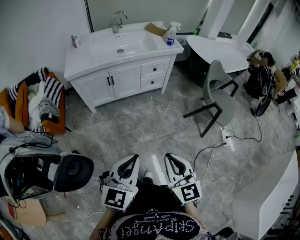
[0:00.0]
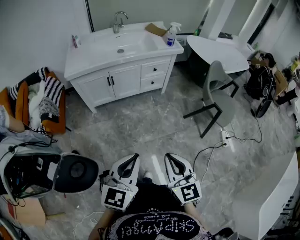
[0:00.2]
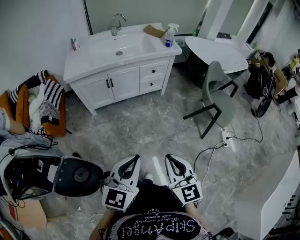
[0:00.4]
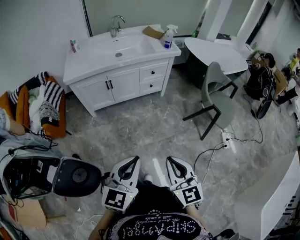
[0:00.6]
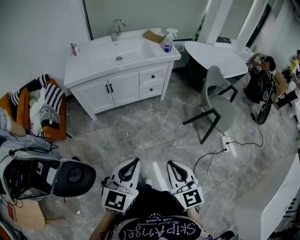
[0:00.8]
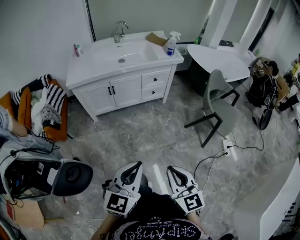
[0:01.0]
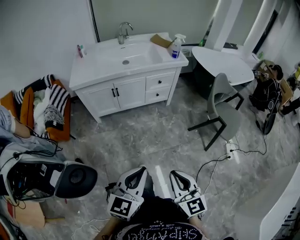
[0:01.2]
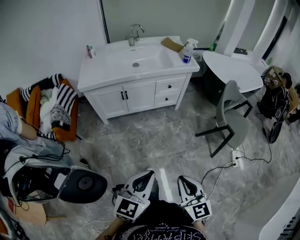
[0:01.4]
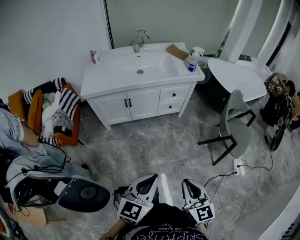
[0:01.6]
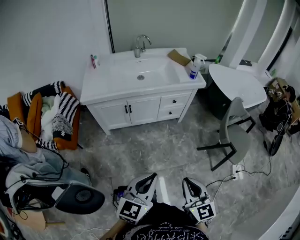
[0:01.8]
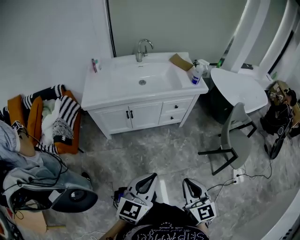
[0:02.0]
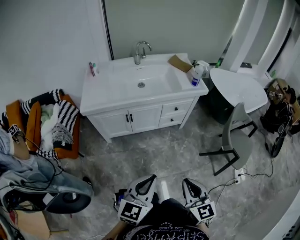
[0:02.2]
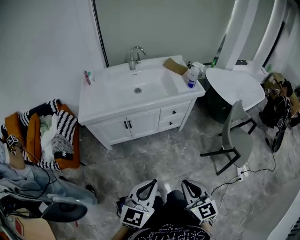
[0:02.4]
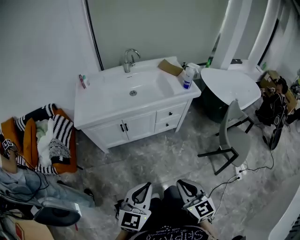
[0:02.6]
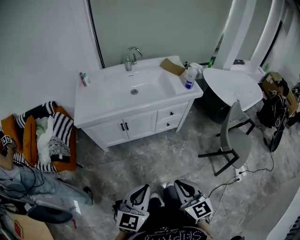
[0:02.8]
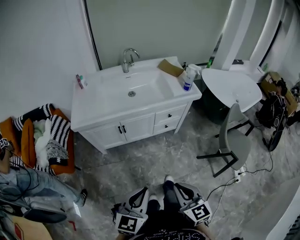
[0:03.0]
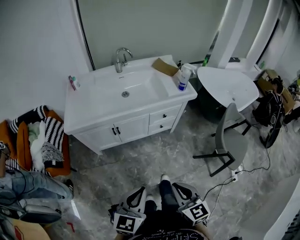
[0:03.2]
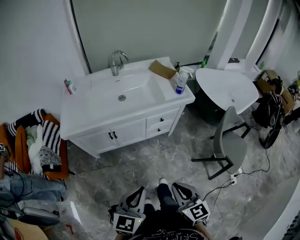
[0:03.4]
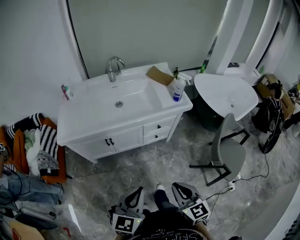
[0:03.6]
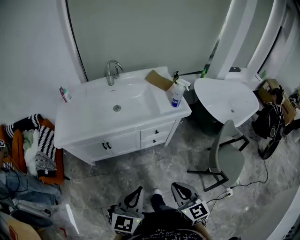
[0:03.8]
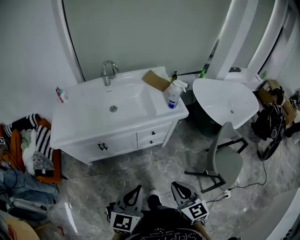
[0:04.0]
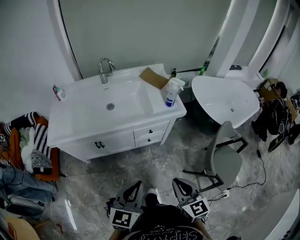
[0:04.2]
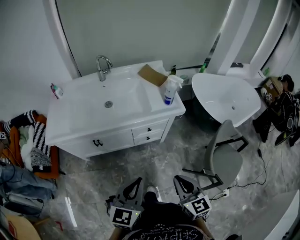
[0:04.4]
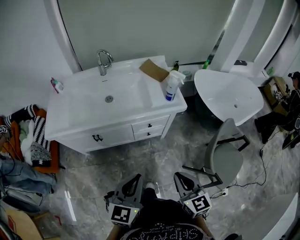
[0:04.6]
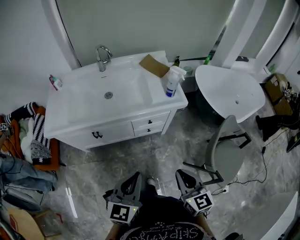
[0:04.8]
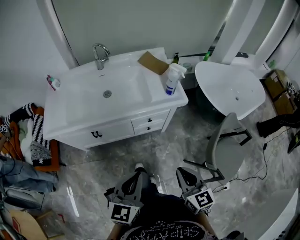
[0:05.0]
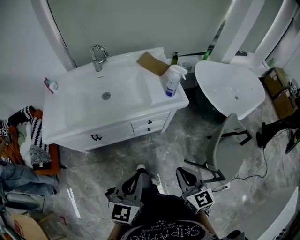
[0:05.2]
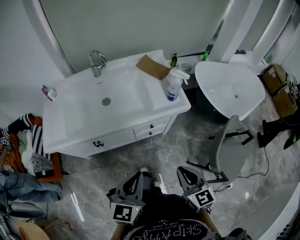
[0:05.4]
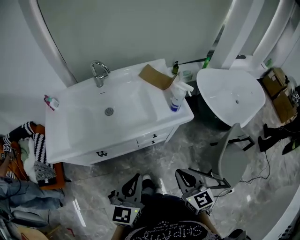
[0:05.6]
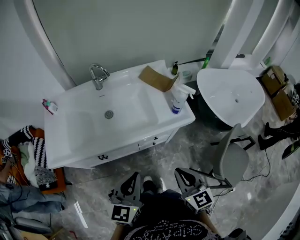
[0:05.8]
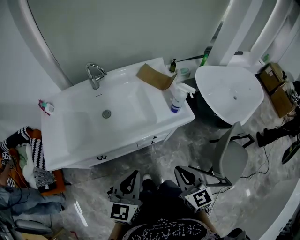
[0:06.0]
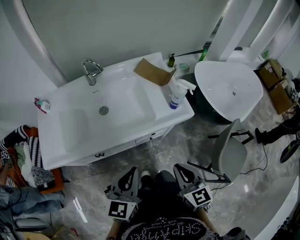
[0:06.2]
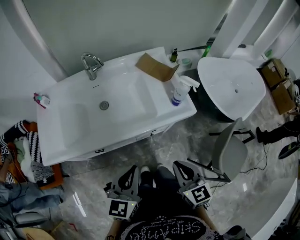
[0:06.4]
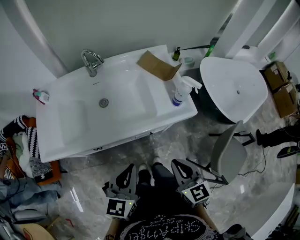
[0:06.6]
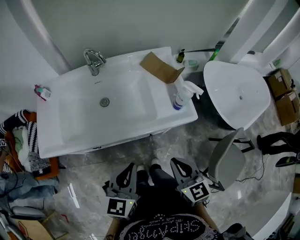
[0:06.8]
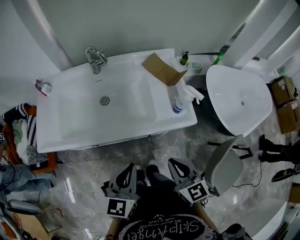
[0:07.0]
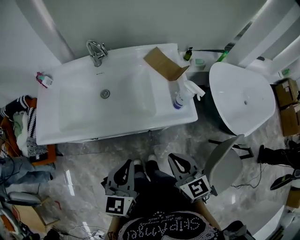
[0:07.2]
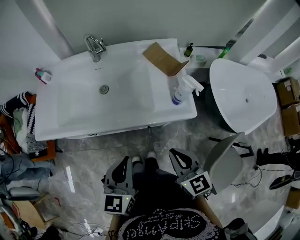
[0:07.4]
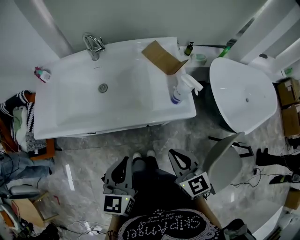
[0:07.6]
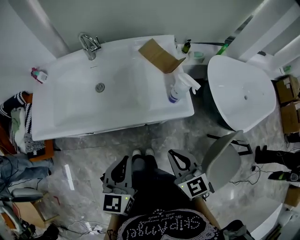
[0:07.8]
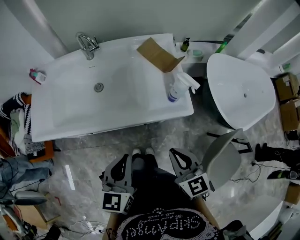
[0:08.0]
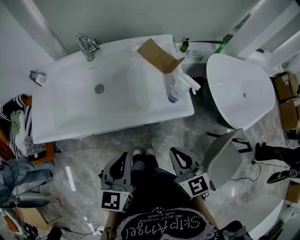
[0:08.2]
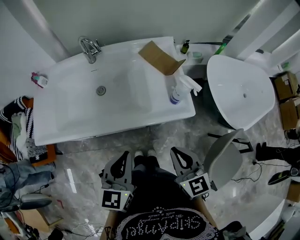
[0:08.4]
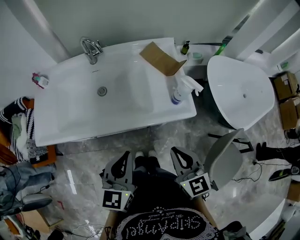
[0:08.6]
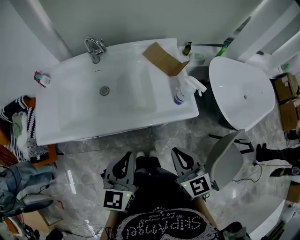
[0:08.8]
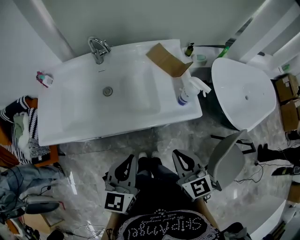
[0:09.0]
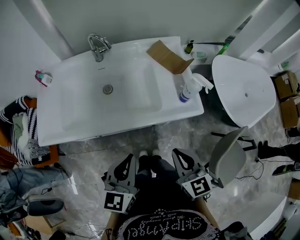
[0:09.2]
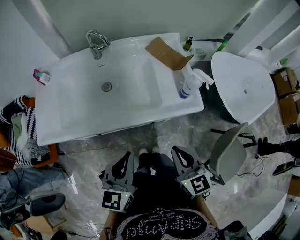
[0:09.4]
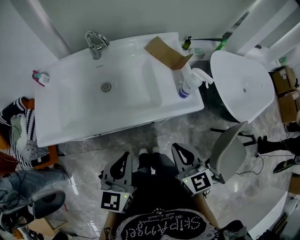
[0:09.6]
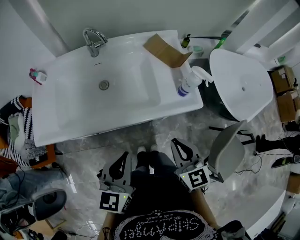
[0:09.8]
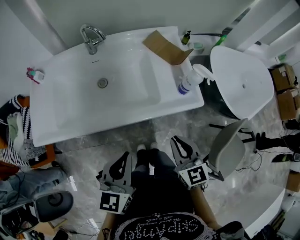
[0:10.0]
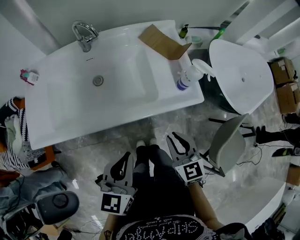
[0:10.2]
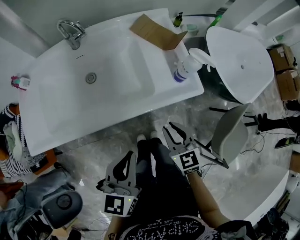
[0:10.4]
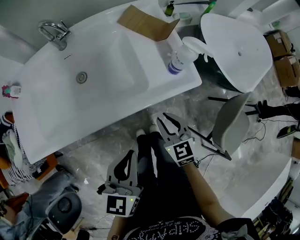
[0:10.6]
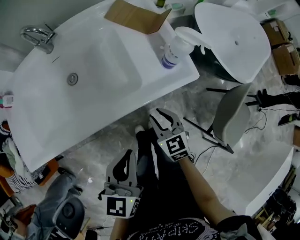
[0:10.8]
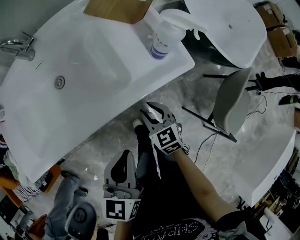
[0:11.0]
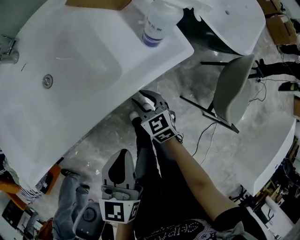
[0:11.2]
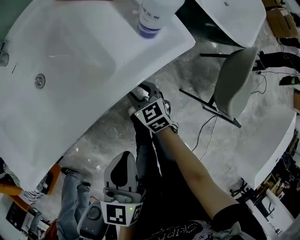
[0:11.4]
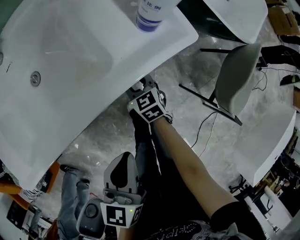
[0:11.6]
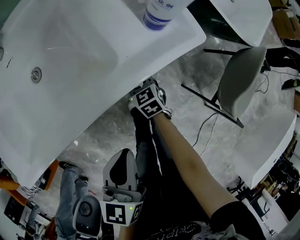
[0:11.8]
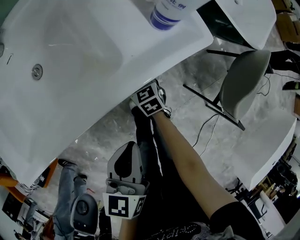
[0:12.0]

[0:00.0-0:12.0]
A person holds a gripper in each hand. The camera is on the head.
0:00.0 to 0:01.6: Both grippers move forward, about 10 cm.
0:01.6 to 0:03.0: The right gripper is displaced forward by roughly 15 cm; the left gripper shifts roughly 15 cm forward and to the left.
0:03.0 to 0:04.4: The left gripper goes some 25 cm forward and to the right. Meanwhile the right gripper moves to the right and forward, approximately 25 cm.
0:04.4 to 0:06.0: The two grippers go roughly 15 cm forward.
0:06.0 to 0:07.6: The left gripper goes roughly 5 cm to the right, while the right gripper goes roughly 10 cm forward and to the right.
0:07.6 to 0:09.0: The grippers stay close to where they were, moving slightly.
0:09.0 to 0:10.4: The right gripper shifts roughly 15 cm downward.
0:10.4 to 0:12.0: The right gripper moves downward, approximately 30 cm, and changes its angle by roughly 20 degrees; the left gripper heads downward, covering about 15 cm.

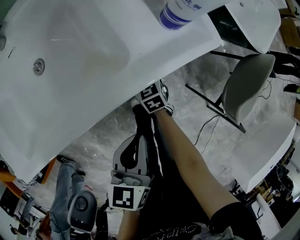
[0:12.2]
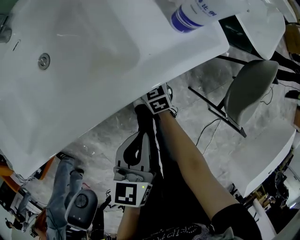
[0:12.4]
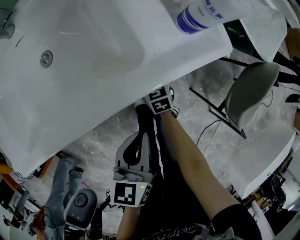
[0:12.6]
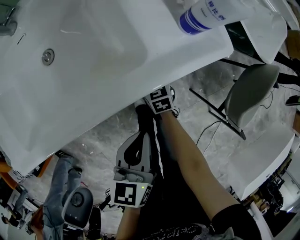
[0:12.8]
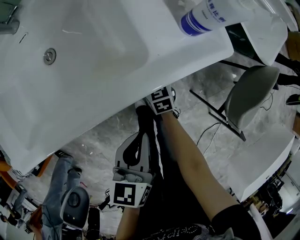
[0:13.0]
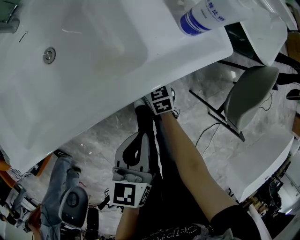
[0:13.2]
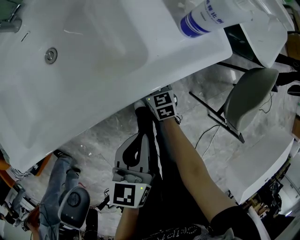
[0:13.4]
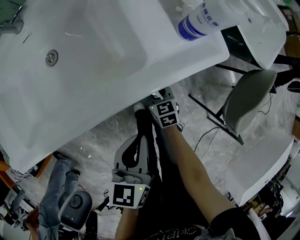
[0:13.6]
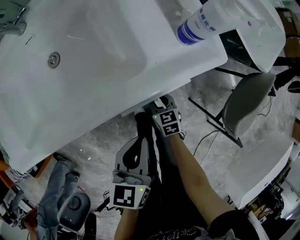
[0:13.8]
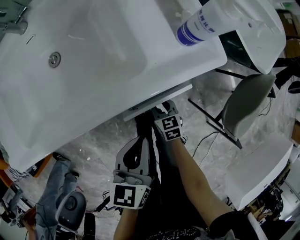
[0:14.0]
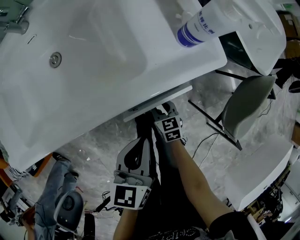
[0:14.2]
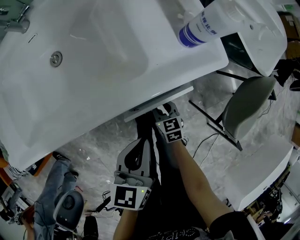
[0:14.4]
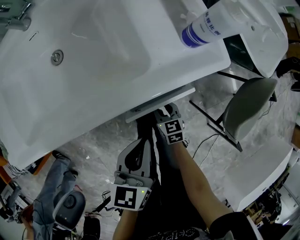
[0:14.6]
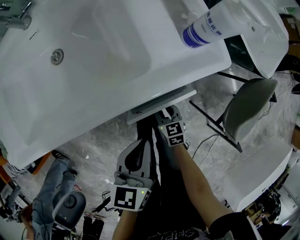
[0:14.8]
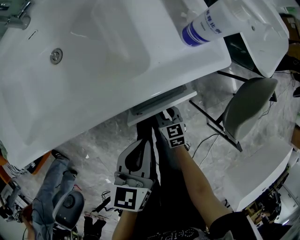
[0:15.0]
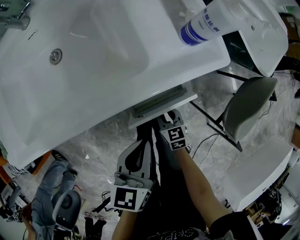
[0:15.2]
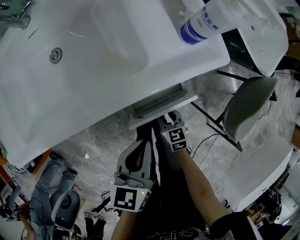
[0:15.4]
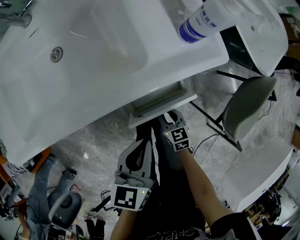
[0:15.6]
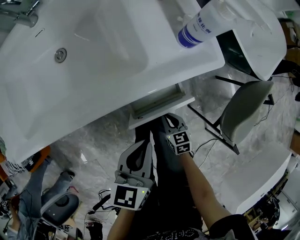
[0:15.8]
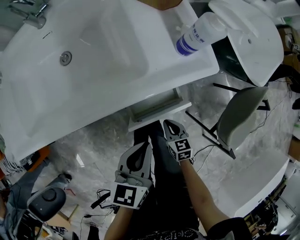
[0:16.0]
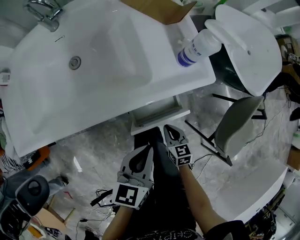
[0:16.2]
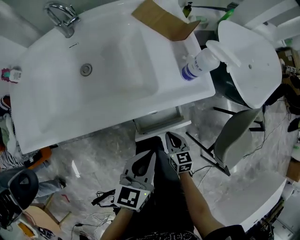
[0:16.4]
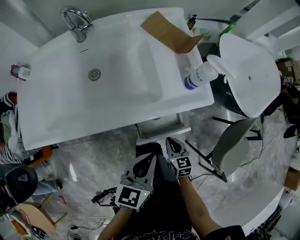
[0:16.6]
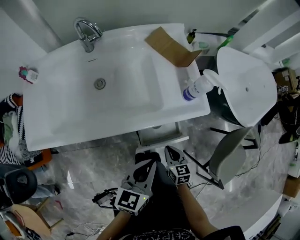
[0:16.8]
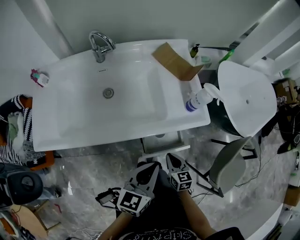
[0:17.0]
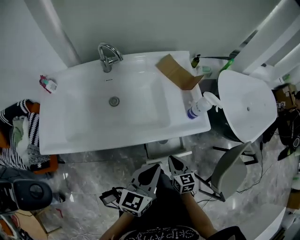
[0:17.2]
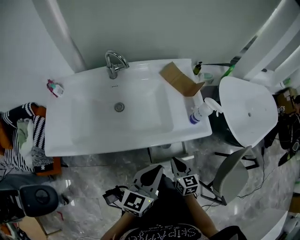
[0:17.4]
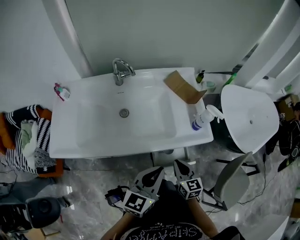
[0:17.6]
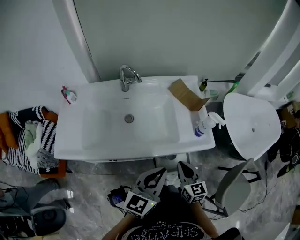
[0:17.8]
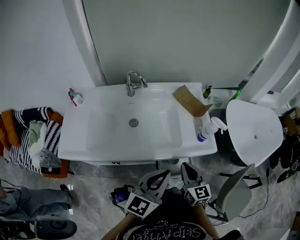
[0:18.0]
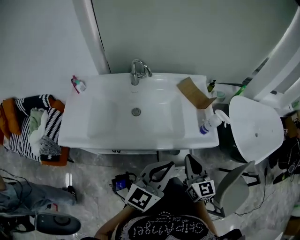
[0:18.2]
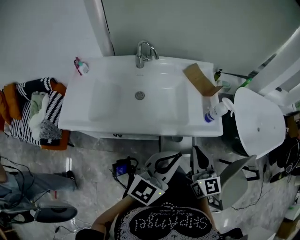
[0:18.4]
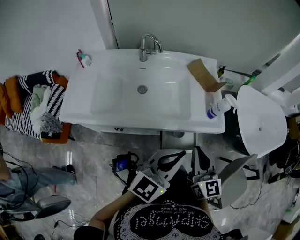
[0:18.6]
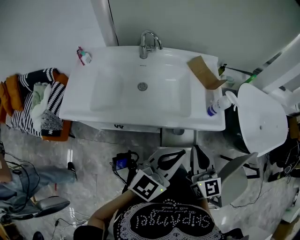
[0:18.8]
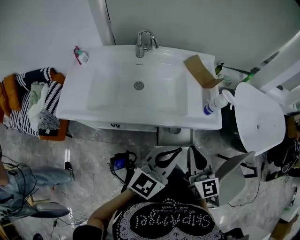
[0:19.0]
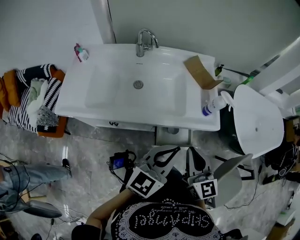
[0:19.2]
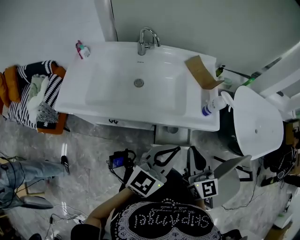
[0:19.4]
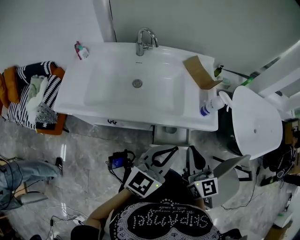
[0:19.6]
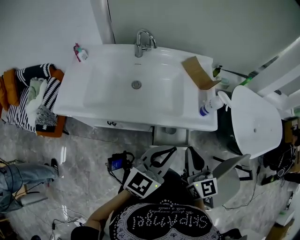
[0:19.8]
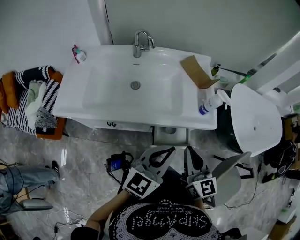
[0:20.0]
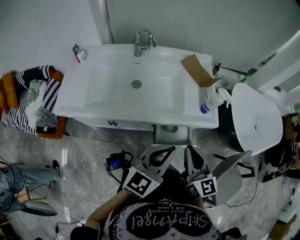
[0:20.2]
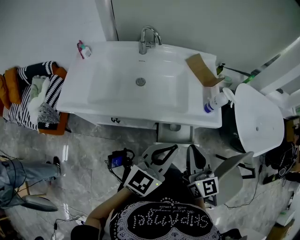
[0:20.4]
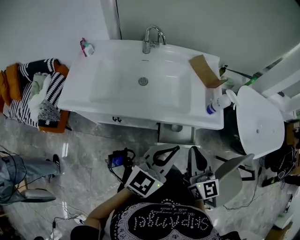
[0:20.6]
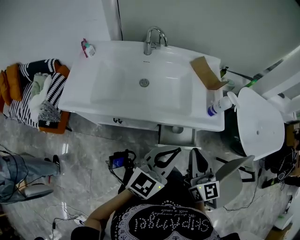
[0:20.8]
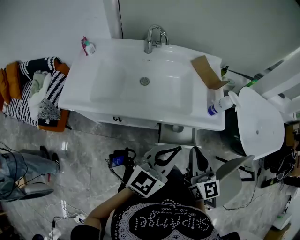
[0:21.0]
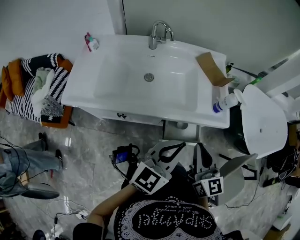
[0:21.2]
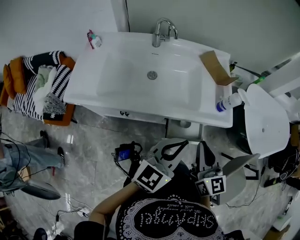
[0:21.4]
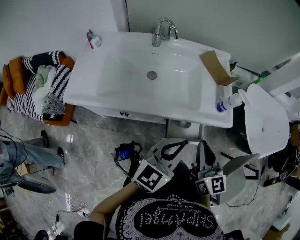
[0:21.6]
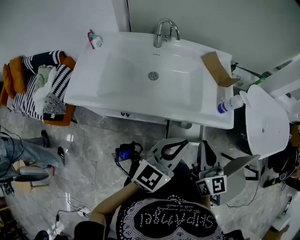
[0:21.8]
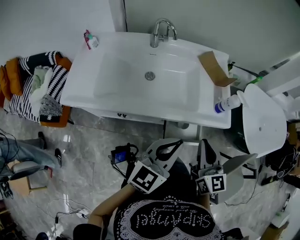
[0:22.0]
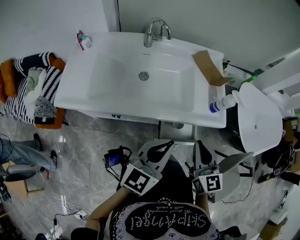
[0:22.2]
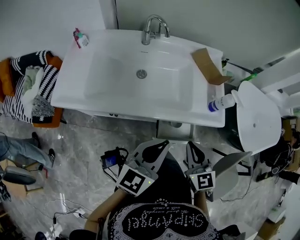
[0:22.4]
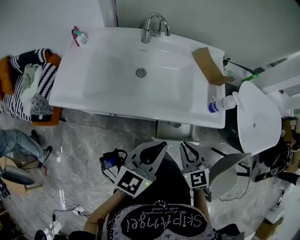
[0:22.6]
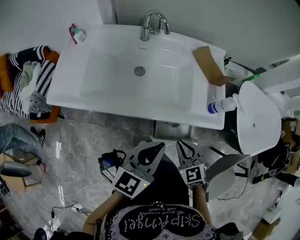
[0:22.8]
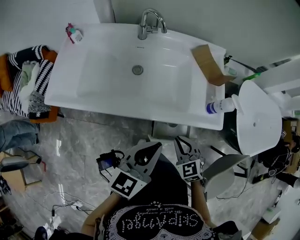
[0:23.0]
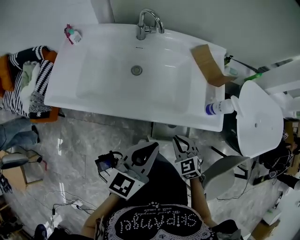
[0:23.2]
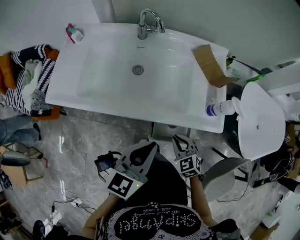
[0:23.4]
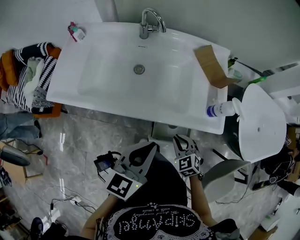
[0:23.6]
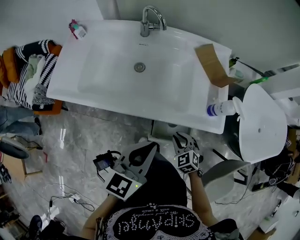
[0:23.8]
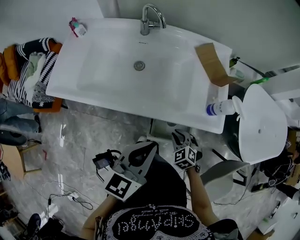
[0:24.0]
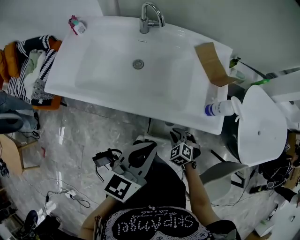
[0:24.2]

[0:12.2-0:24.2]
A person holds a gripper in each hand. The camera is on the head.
0:12.2 to 0:13.8: The right gripper goes some 10 cm backward.
0:13.8 to 0:15.2: The right gripper shifts some 5 cm backward.
0:15.2 to 0:16.6: Both grippers travel together upward, approximately 10 cm. The right gripper closes.
0:16.6 to 0:18.2: The left gripper heads upward, covering roughly 20 cm, and swivels approximately 30 degrees; the right gripper shifts some 30 cm upward, and tips its fingers upward by approximately 30 degrees.
0:18.2 to 0:19.8: The right gripper travels backward by approximately 5 cm, while the left gripper changes place by approximately 5 cm.
0:19.8 to 0:21.2: The grippers make only small movements.
0:21.2 to 0:22.6: The right gripper heads downward, covering roughly 10 cm, and turns by roughly 40 degrees. The left gripper shifts by some 5 cm.
0:22.6 to 0:24.2: The left gripper moves approximately 5 cm. Meanwhile the right gripper heads downward, covering some 20 cm, and tips its fingers downward by about 30 degrees.
